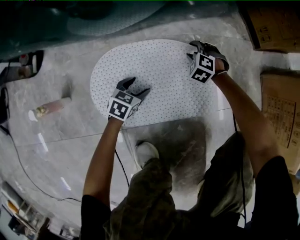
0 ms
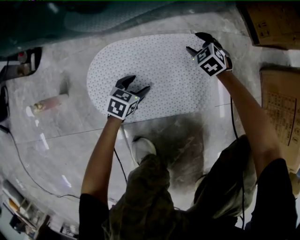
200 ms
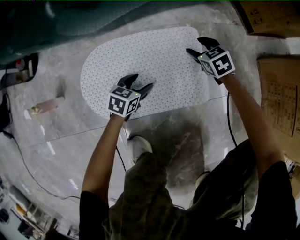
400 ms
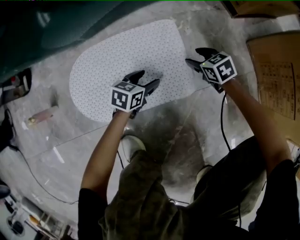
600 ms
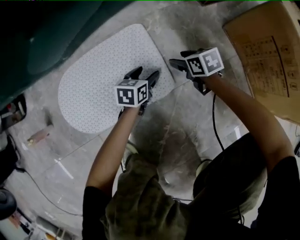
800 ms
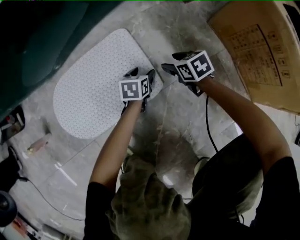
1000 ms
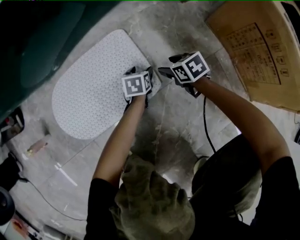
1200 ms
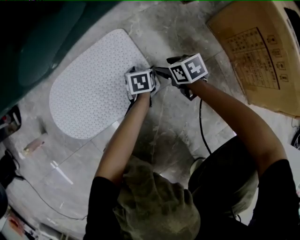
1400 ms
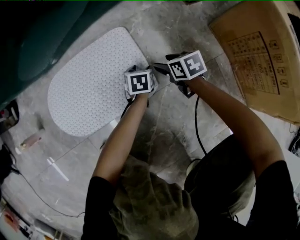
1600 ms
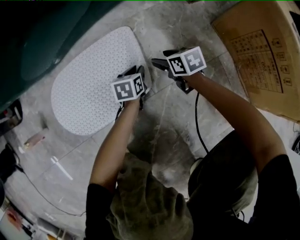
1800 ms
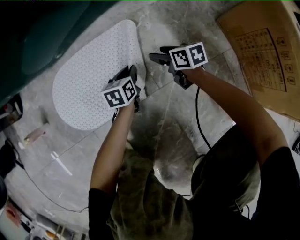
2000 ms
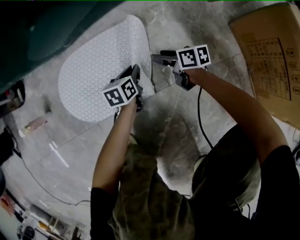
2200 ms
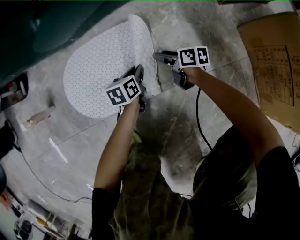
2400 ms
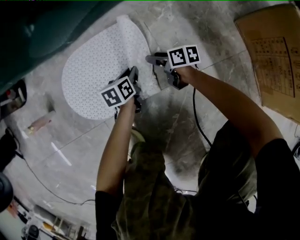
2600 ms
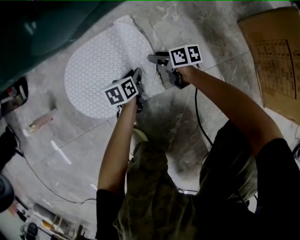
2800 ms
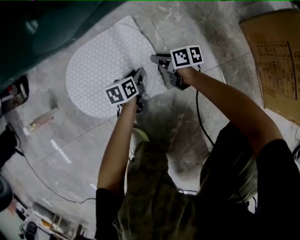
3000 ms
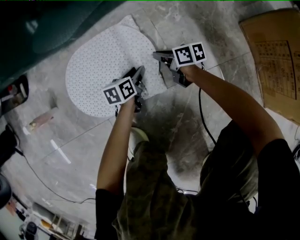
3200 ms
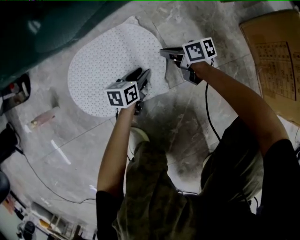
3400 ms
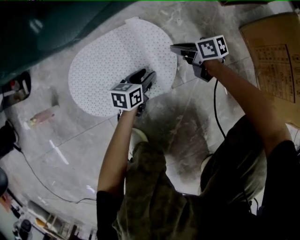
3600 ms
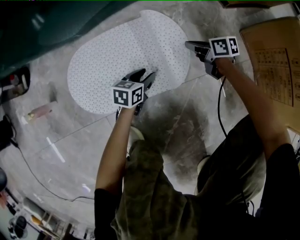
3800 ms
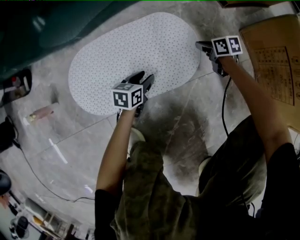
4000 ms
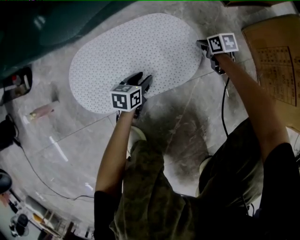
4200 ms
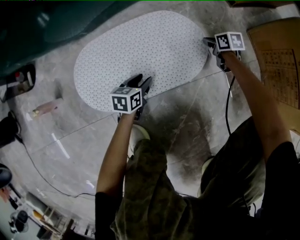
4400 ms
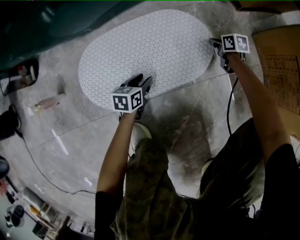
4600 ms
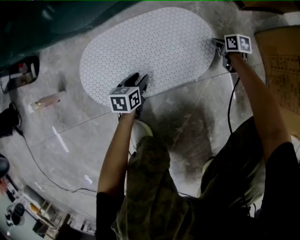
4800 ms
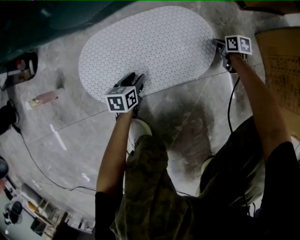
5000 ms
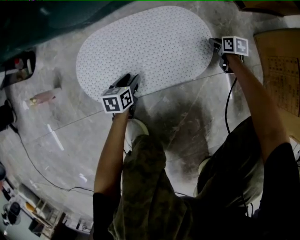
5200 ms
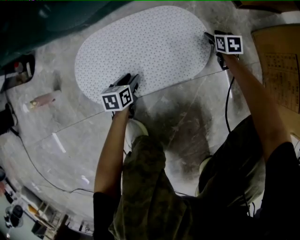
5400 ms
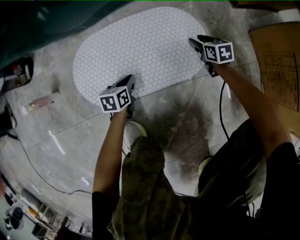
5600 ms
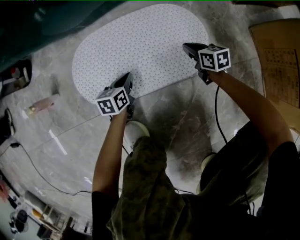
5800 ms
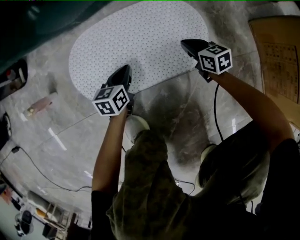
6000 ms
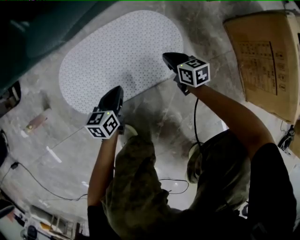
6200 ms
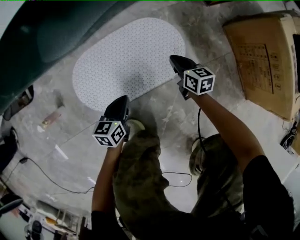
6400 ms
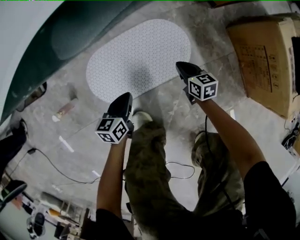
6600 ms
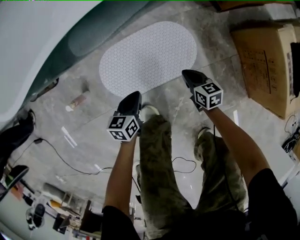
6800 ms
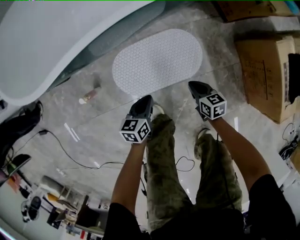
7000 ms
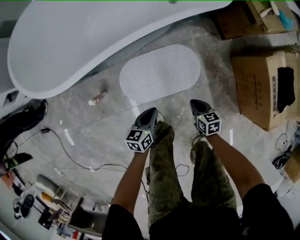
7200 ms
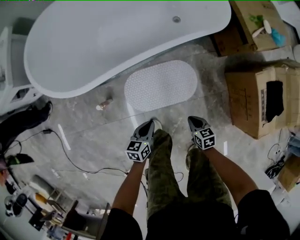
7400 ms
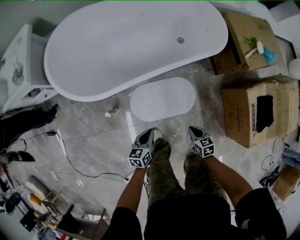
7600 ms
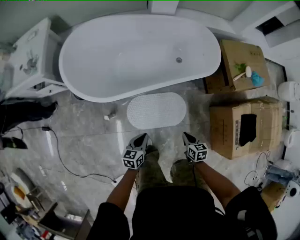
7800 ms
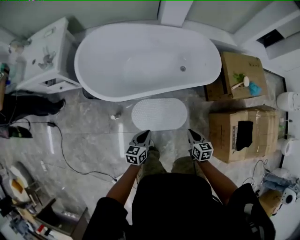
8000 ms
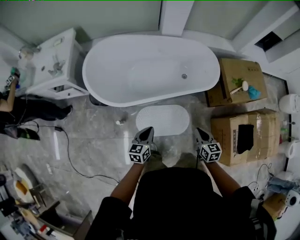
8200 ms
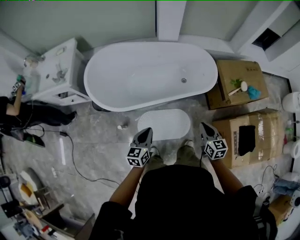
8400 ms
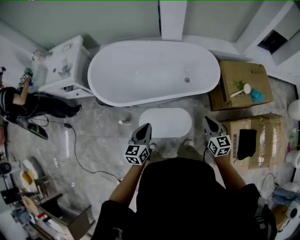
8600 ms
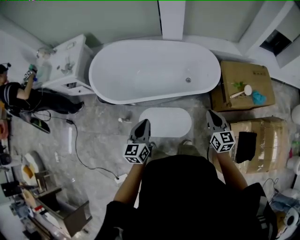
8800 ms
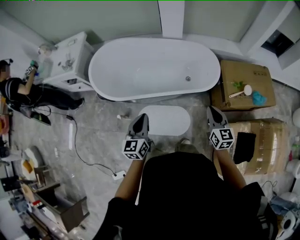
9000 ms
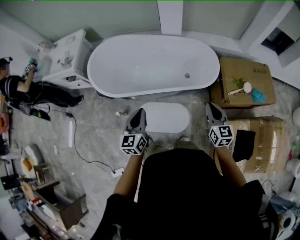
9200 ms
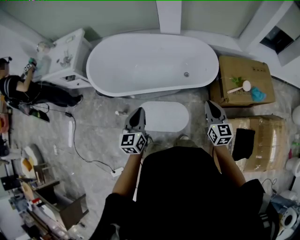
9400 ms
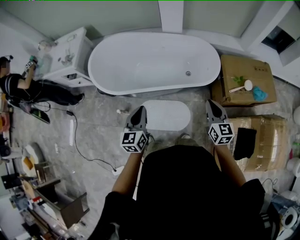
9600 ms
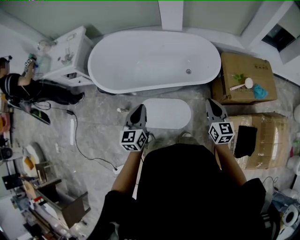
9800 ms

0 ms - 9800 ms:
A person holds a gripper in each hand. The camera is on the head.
0 ms - 1400 ms: The left gripper is displaced to the right by approximately 35 cm. Meanwhile the right gripper travels to the right and backward by some 25 cm, and twists approximately 80 degrees clockwise, seen from behind.
1400 ms - 2800 ms: The two grippers go some 20 cm to the left. The left gripper swivels some 20 degrees, and closes up, while the right gripper turns by some 30 degrees.
2800 ms - 4200 ms: The left gripper moves some 5 cm, and changes its angle by roughly 20 degrees. Meanwhile the right gripper is displaced to the right by roughly 20 cm, swivels some 30 degrees, and closes up.
4200 ms - 5600 ms: The right gripper is displaced to the left by approximately 5 cm, and opens its fingers, while the left gripper heads to the left, covering some 10 cm, and closes its fingers.
5600 ms - 7000 ms: The left gripper goes roughly 40 cm upward. Meanwhile the right gripper moves upward and to the left, about 35 cm, and closes up.
7000 ms - 8400 ms: Both grippers travel together upward, approximately 60 cm. The left gripper turns by some 30 degrees. Meanwhile the right gripper swivels roughly 30 degrees.
8400 ms - 9800 ms: The grippers both shift to the right and upward by about 15 cm. The left gripper turns by approximately 20 degrees.

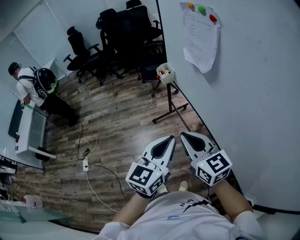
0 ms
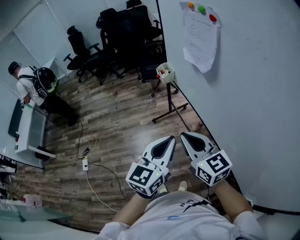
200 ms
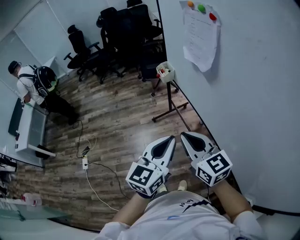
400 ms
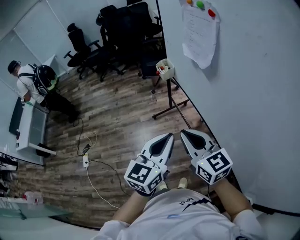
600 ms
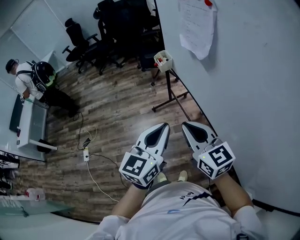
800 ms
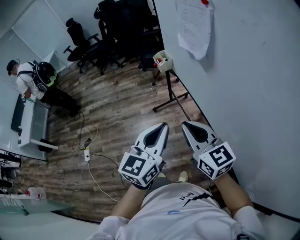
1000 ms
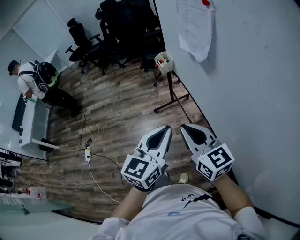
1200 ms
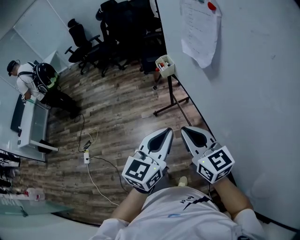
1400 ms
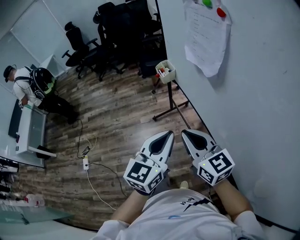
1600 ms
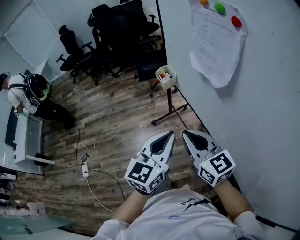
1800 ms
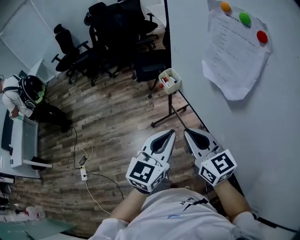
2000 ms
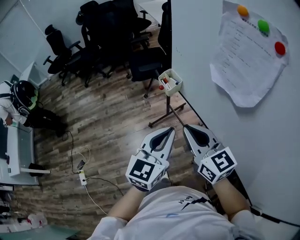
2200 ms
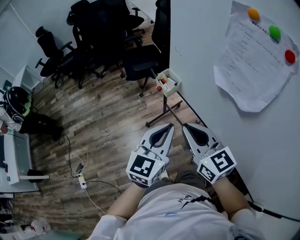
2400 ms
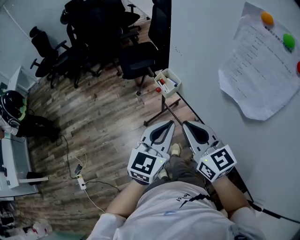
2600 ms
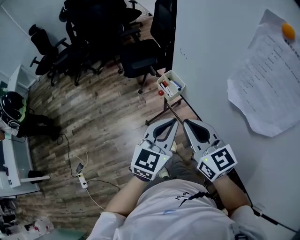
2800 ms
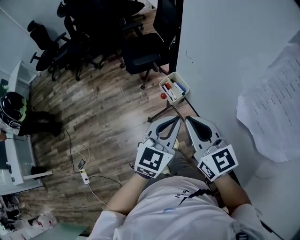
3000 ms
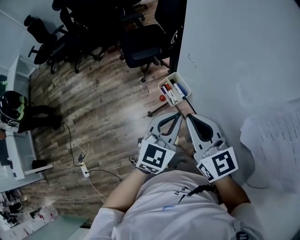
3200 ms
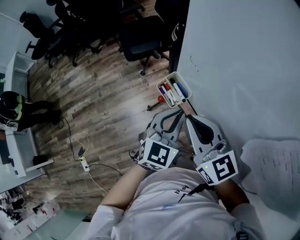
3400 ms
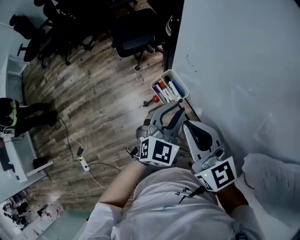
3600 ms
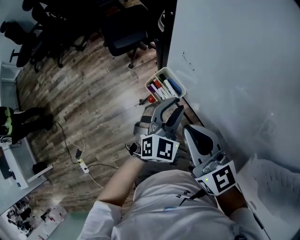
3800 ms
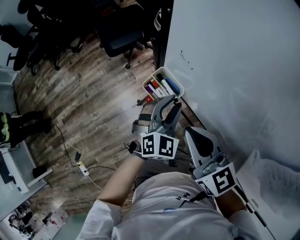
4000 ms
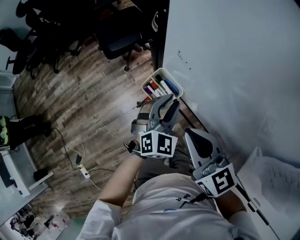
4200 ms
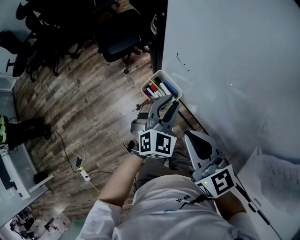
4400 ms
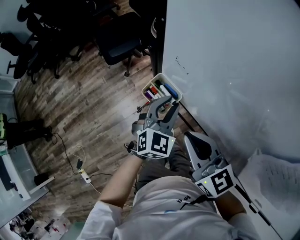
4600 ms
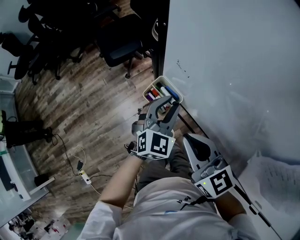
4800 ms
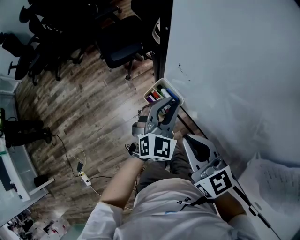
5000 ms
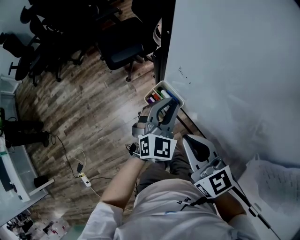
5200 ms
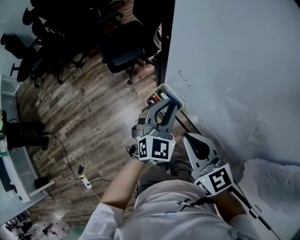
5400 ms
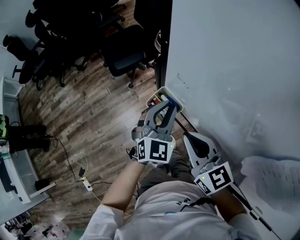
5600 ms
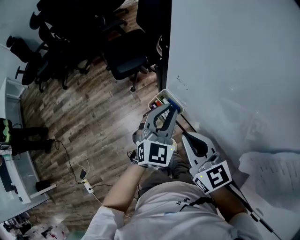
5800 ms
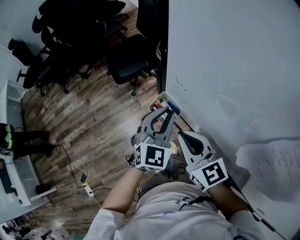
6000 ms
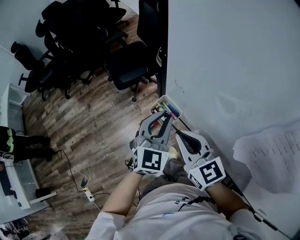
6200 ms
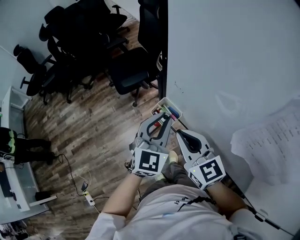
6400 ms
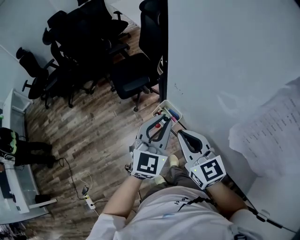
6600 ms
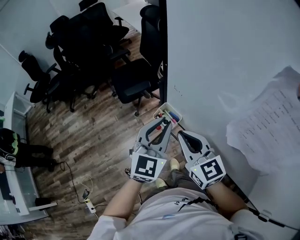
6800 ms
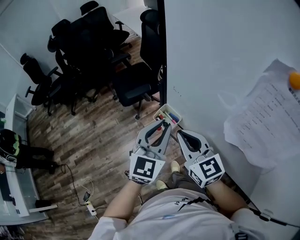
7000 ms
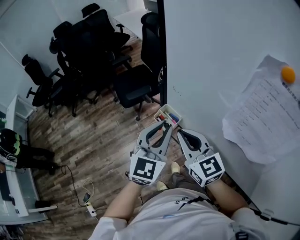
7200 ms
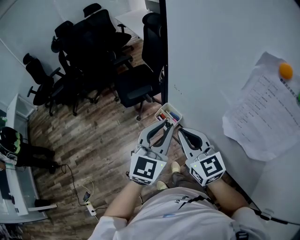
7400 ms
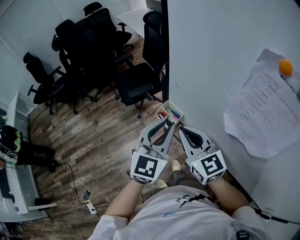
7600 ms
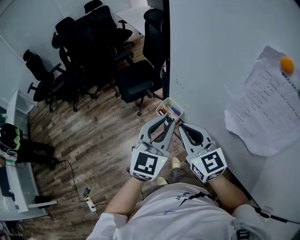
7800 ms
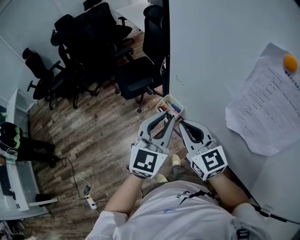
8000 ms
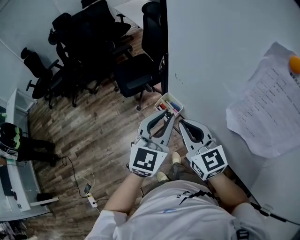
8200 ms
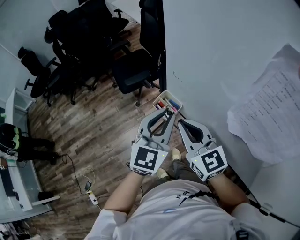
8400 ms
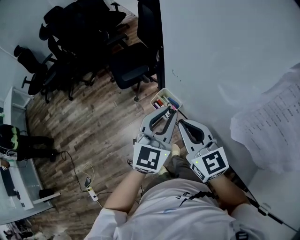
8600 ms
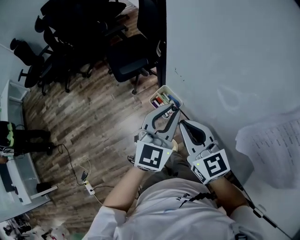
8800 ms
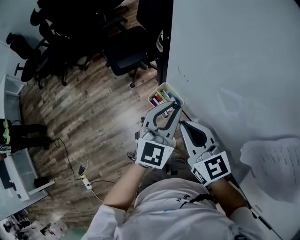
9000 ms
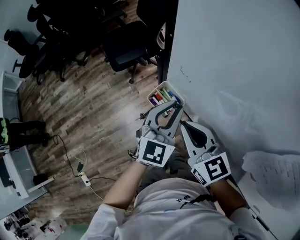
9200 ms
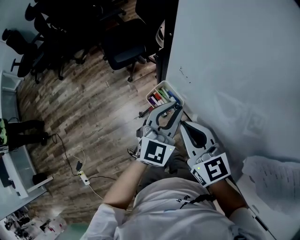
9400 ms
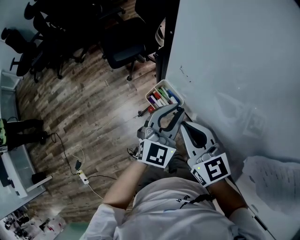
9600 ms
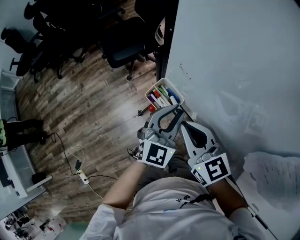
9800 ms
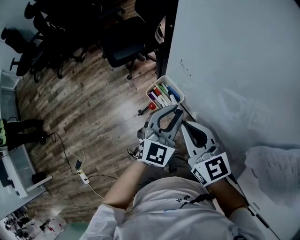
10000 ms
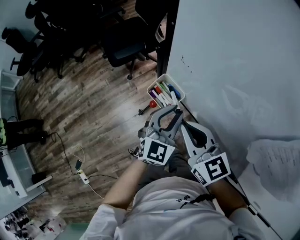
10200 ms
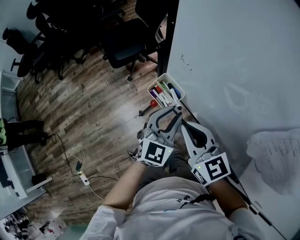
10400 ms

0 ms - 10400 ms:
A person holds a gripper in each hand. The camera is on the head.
0 ms - 1400 ms: The grippers stay close to where they were, moving slightly.
1400 ms - 3000 ms: The two grippers go roughly 35 cm forward.
3000 ms - 4400 ms: The left gripper goes approximately 20 cm downward and forward, turns by approximately 30 degrees, and opens up. Meanwhile the right gripper heads downward and forward, covering some 10 cm.
4400 ms - 6000 ms: The left gripper shifts about 10 cm upward.
6000 ms - 7400 ms: The left gripper moves upward and backward, roughly 15 cm, while the right gripper shifts about 10 cm upward.
7400 ms - 9000 ms: Both grippers travel together downward and forward, approximately 10 cm.
9000 ms - 10400 ms: The left gripper travels downward by roughly 10 cm.

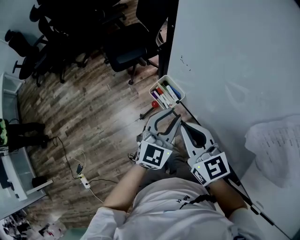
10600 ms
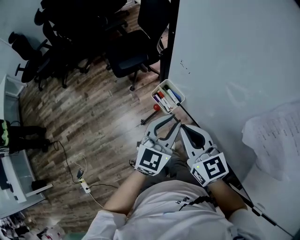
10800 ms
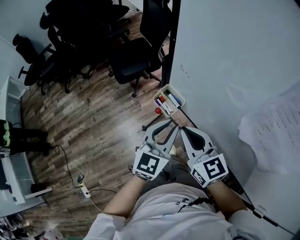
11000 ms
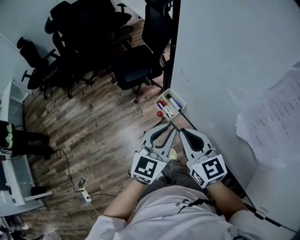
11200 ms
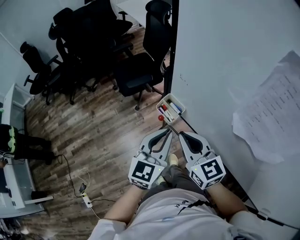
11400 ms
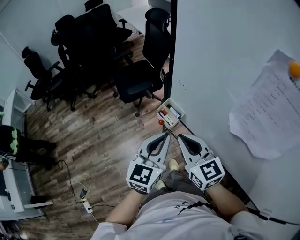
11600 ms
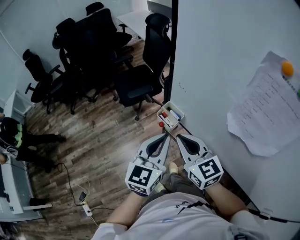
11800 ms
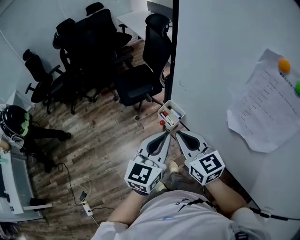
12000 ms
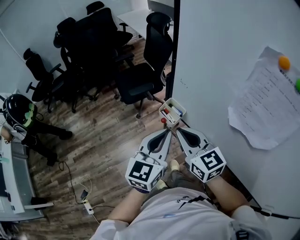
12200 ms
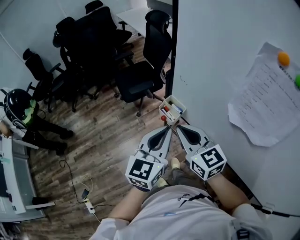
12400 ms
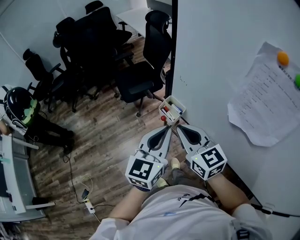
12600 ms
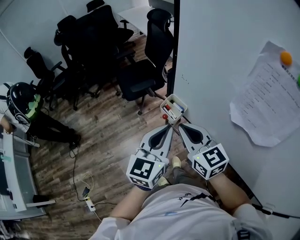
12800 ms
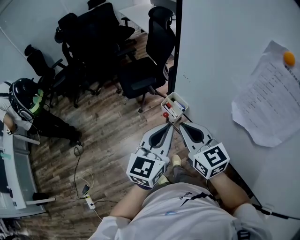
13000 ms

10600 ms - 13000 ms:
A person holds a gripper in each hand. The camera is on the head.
10600 ms - 11800 ms: The right gripper is displaced upward by approximately 5 cm; the left gripper travels upward, backward and to the left by some 20 cm, and closes.
11800 ms - 13000 ms: The grippers stay close to where they were, moving slightly.

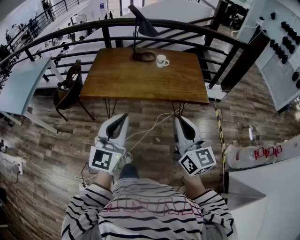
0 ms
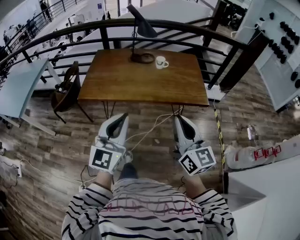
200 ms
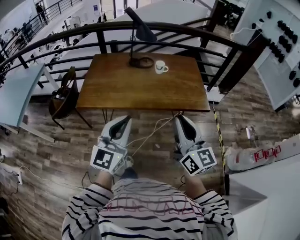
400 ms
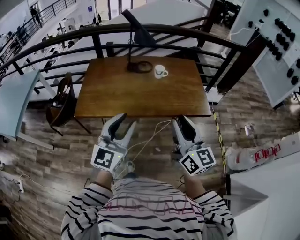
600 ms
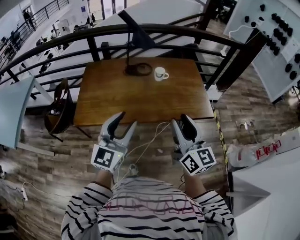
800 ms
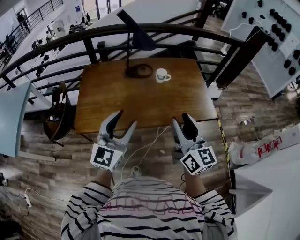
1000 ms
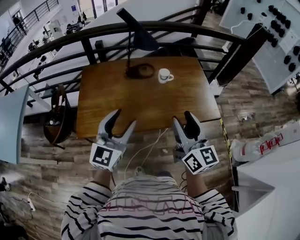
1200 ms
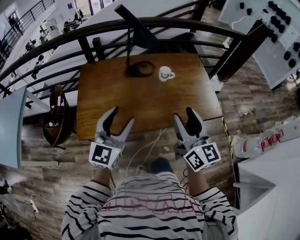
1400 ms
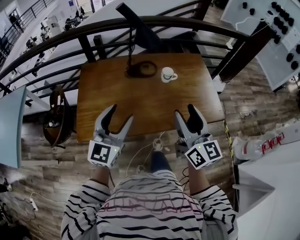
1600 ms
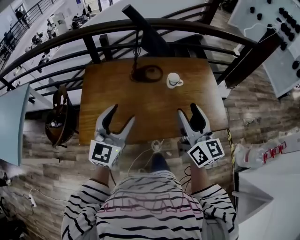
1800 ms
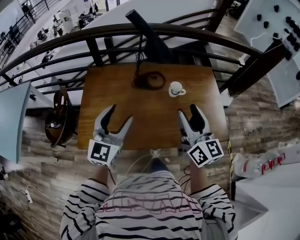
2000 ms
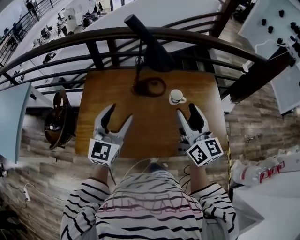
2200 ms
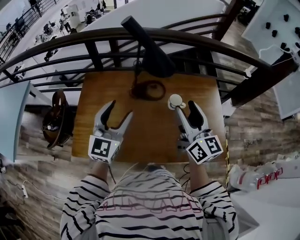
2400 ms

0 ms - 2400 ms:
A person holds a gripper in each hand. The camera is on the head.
0 ms - 1200 ms: The two grippers go roughly 35 cm forward and to the left. The right gripper opens up. Meanwhile the left gripper opens its fingers.
1200 ms - 2400 ms: Both grippers move forward, roughly 30 cm.
